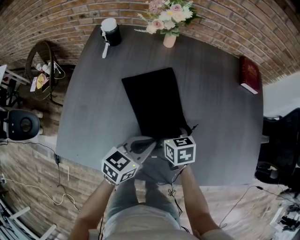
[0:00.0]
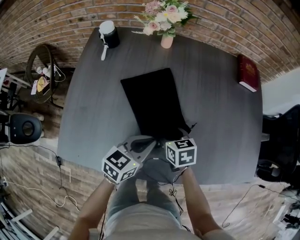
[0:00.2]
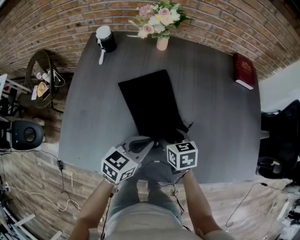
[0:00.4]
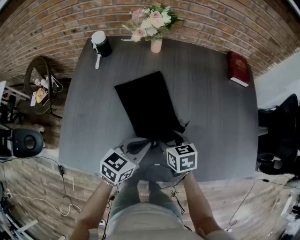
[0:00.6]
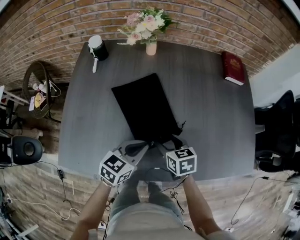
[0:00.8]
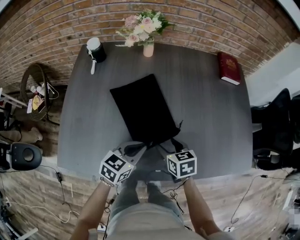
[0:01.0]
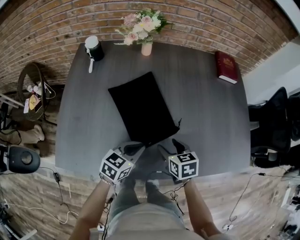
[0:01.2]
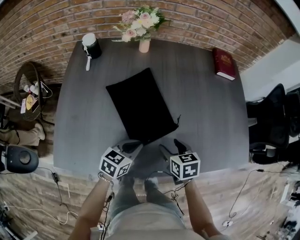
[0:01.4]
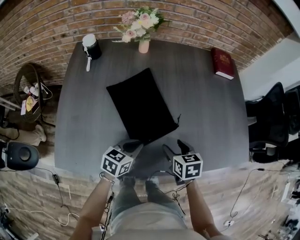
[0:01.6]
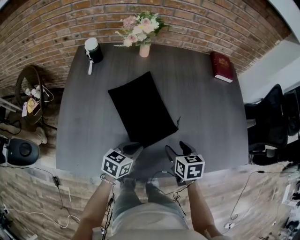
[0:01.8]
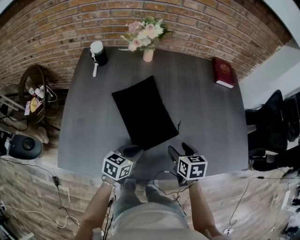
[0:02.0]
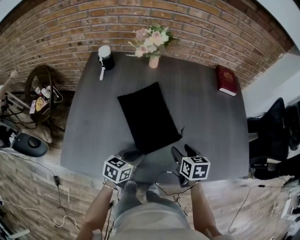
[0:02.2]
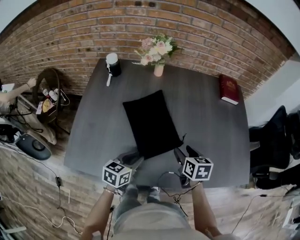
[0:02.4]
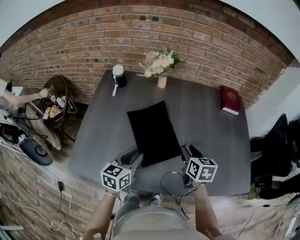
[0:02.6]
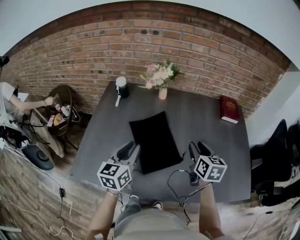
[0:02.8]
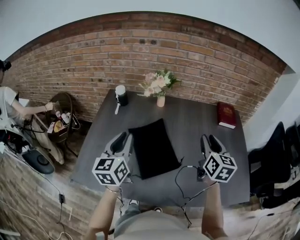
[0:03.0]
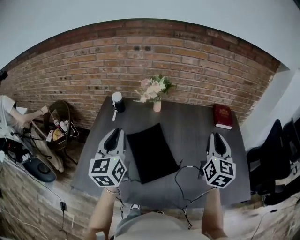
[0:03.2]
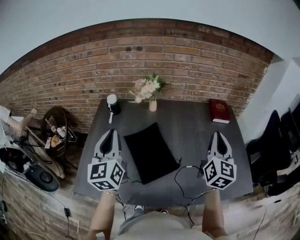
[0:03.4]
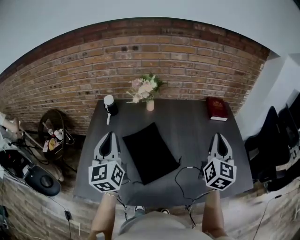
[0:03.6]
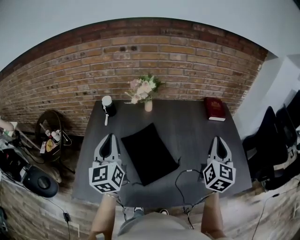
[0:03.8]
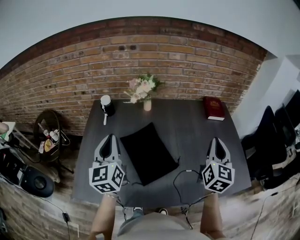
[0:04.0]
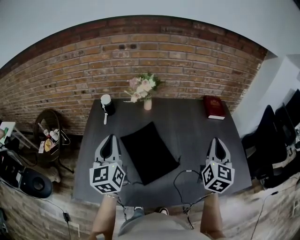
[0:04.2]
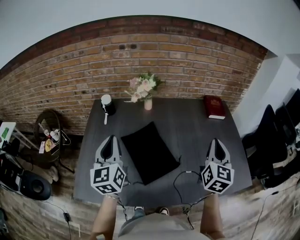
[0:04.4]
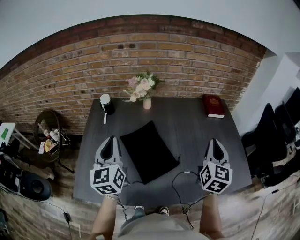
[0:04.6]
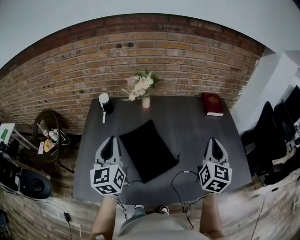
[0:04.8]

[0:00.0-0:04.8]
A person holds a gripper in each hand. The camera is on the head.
0:00.0 to 0:01.6: The left gripper is displaced downward by approximately 5 cm, while the right gripper heads to the right and backward, covering about 15 cm.
0:01.6 to 0:03.2: The right gripper goes some 30 cm upward, angles its fingers upward, by some 50 degrees, and closes up, while the left gripper shifts approximately 35 cm upward and to the left, and angles its fingers upward, by some 30 degrees.
0:03.2 to 0:04.8: The right gripper ends up approximately 5 cm from where it was.

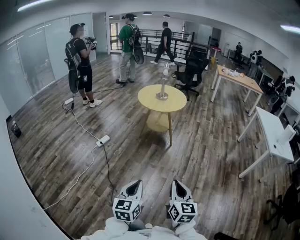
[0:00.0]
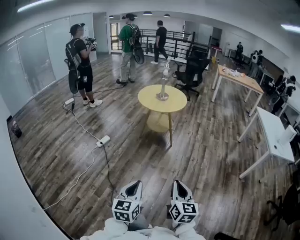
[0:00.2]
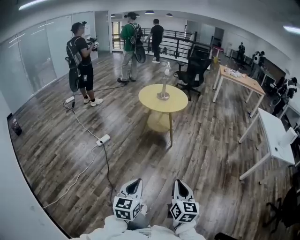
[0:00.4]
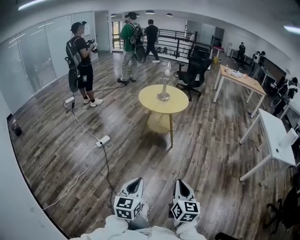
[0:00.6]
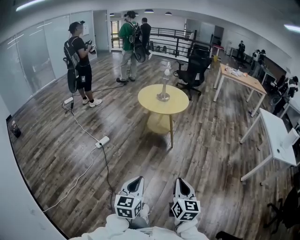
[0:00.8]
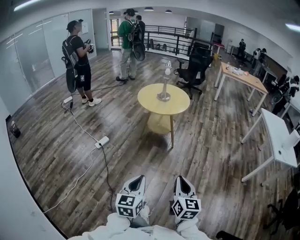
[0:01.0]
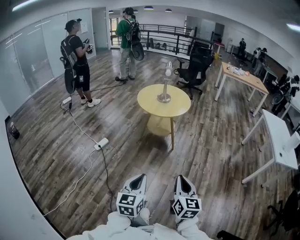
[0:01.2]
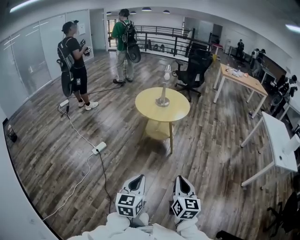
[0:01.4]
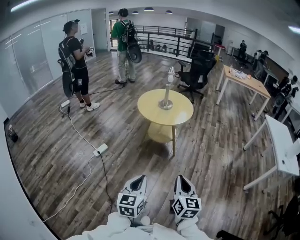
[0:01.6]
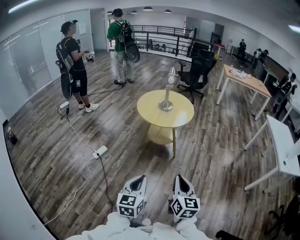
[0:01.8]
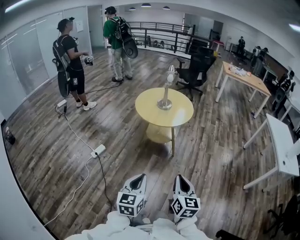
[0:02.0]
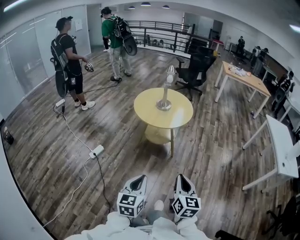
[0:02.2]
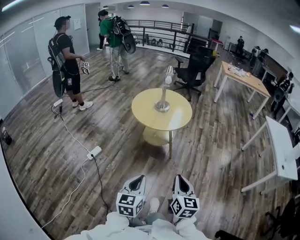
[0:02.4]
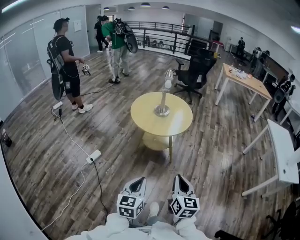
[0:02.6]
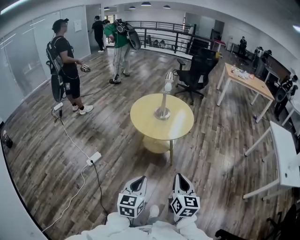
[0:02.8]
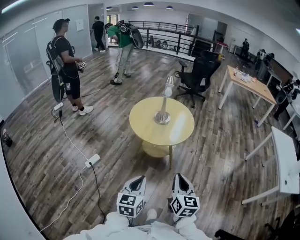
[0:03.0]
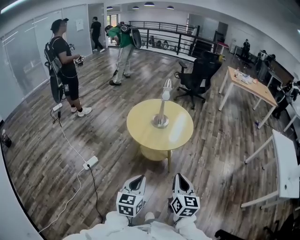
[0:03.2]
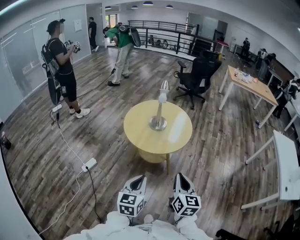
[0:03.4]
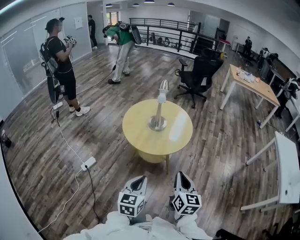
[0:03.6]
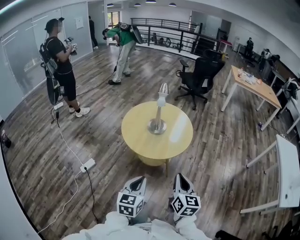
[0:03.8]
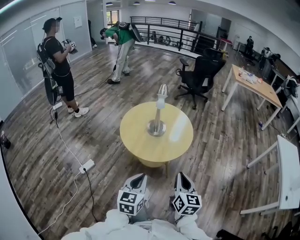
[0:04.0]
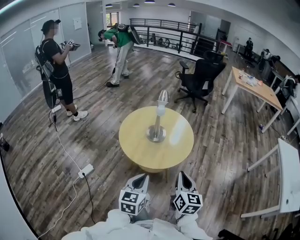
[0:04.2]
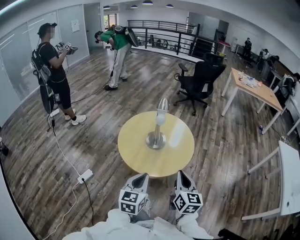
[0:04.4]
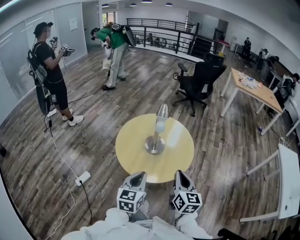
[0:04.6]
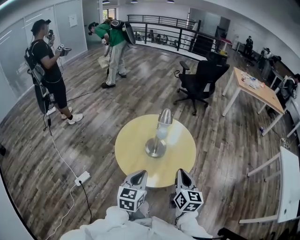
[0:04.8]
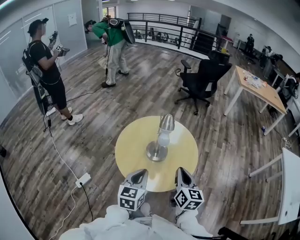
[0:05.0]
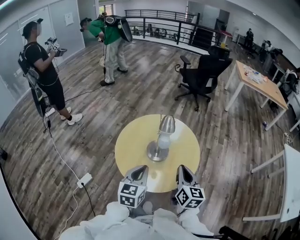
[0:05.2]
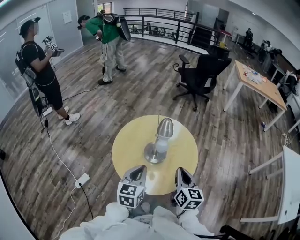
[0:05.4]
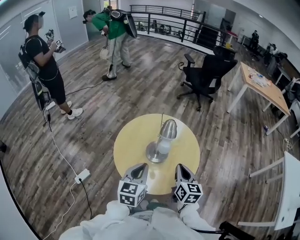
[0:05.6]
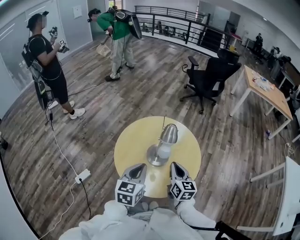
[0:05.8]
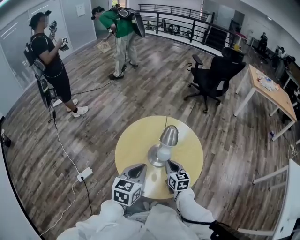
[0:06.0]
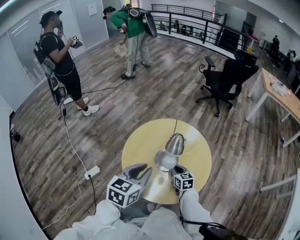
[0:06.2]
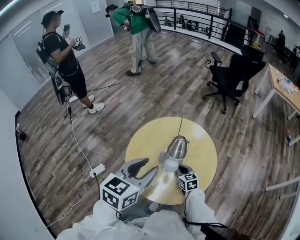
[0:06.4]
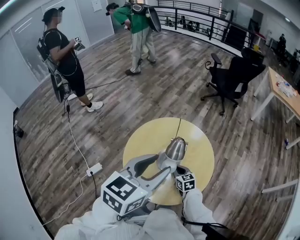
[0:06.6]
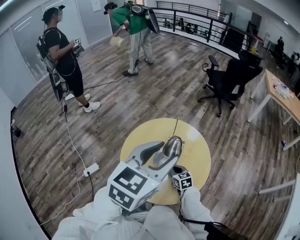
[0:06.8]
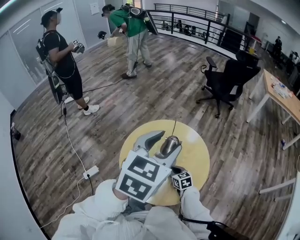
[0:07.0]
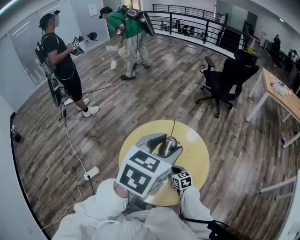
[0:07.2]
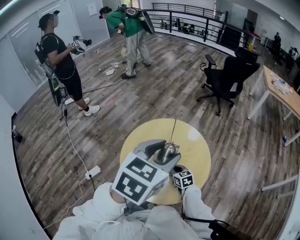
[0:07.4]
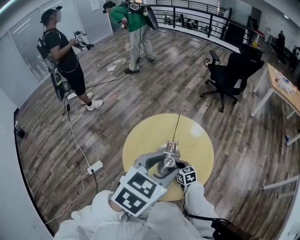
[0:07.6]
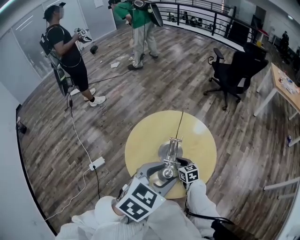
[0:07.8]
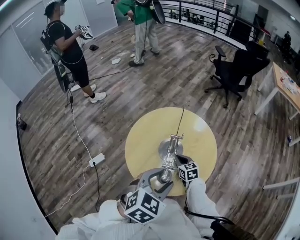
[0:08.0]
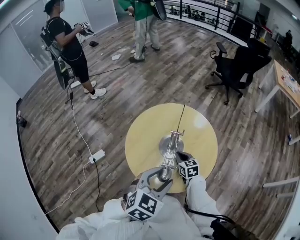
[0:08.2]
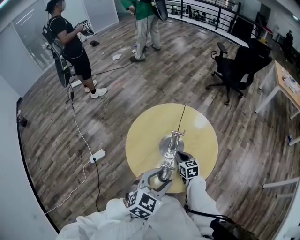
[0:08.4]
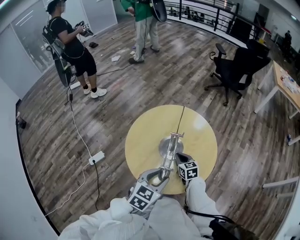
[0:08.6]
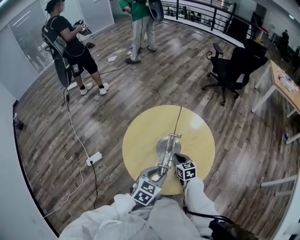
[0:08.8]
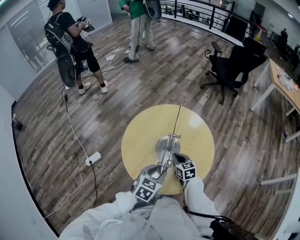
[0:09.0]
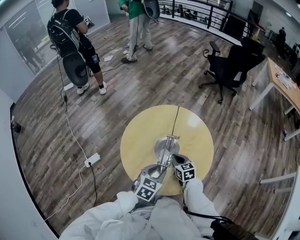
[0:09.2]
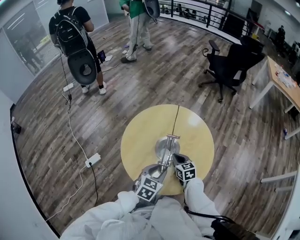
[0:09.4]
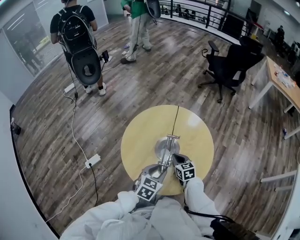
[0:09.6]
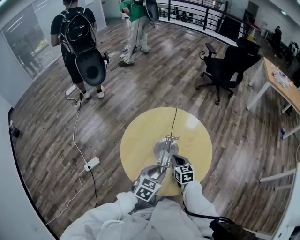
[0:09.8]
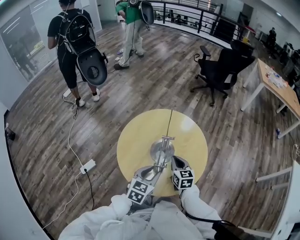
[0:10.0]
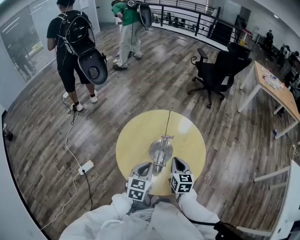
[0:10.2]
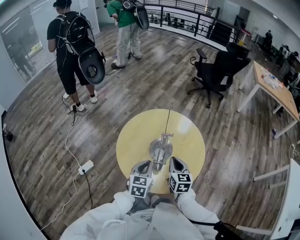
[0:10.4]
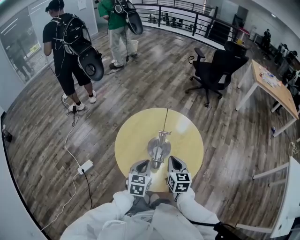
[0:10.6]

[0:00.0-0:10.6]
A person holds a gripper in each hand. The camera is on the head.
0:00.0 to 0:01.6: The grippers both shift forward by about 25 cm.
0:01.6 to 0:03.0: The grippers both shift forward by some 25 cm.
0:03.0 to 0:04.6: The two grippers go about 35 cm forward.
0:04.6 to 0:06.0: The left gripper travels forward by some 15 cm; the right gripper moves forward and downward, approximately 30 cm, and turns by some 30 degrees.
0:06.0 to 0:07.6: The left gripper heads upward and to the right, covering about 15 cm, and opens up. The right gripper goes about 10 cm downward, and swivels roughly 20 degrees.
0:07.6 to 0:09.0: The left gripper shifts approximately 25 cm downward.
0:09.0 to 0:10.6: The left gripper closes up; the right gripper shifts some 15 cm upward and backward, and rotates some 20 degrees.

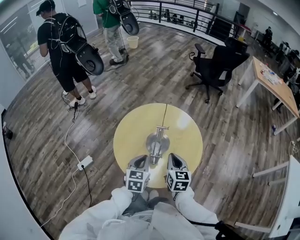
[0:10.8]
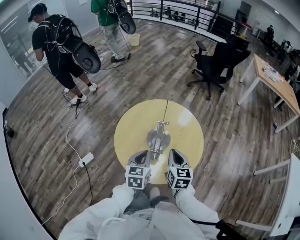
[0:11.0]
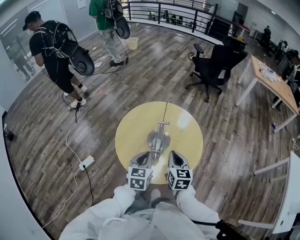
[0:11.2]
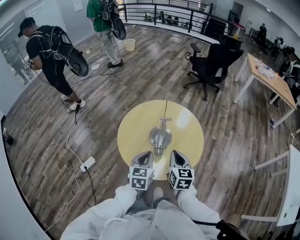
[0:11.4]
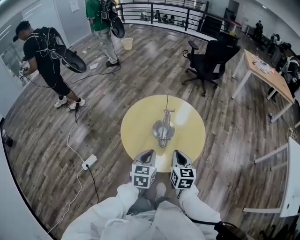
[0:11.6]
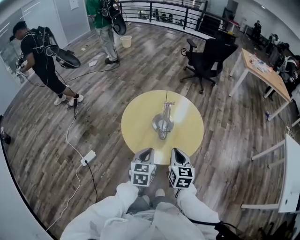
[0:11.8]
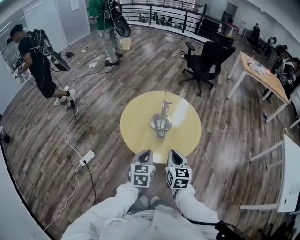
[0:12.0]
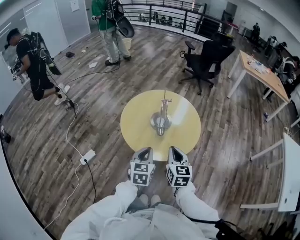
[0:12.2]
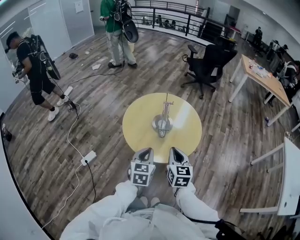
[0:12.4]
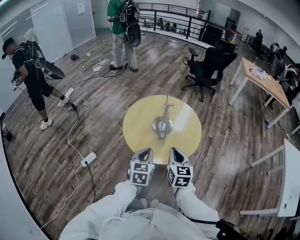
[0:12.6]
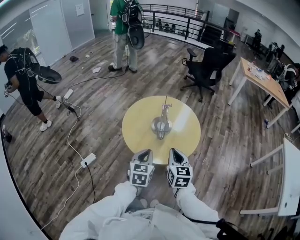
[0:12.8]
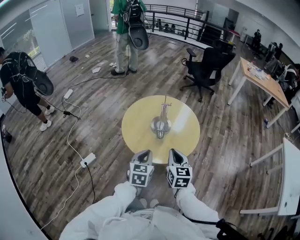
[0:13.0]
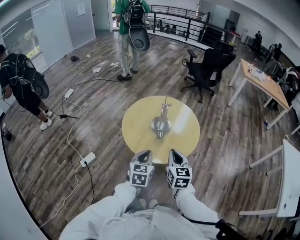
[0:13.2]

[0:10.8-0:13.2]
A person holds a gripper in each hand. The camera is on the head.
0:10.8 to 0:12.0: Both grippers move backward, roughly 15 cm.
0:12.0 to 0:13.2: The grippers stay close to where they were, moving slightly.

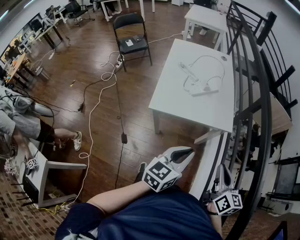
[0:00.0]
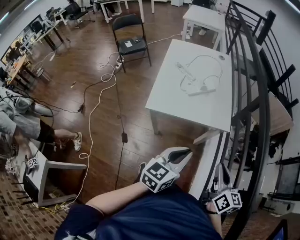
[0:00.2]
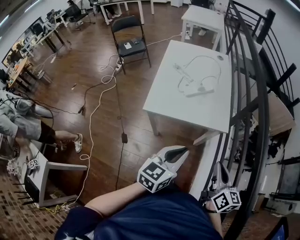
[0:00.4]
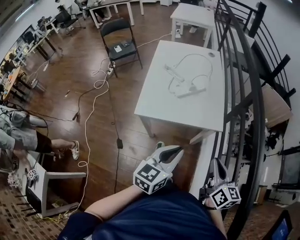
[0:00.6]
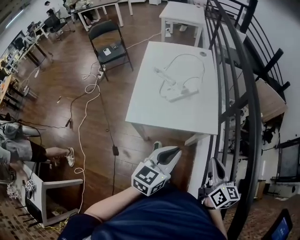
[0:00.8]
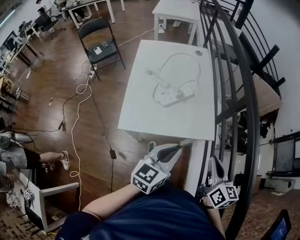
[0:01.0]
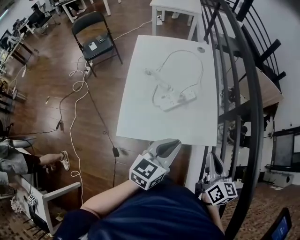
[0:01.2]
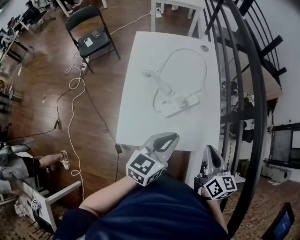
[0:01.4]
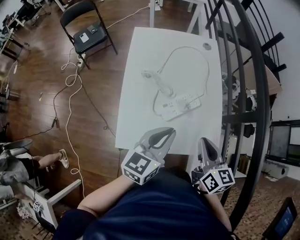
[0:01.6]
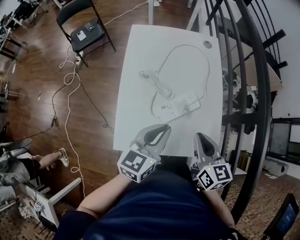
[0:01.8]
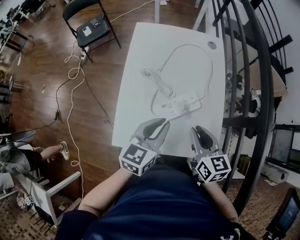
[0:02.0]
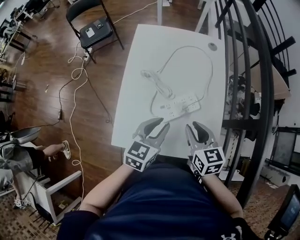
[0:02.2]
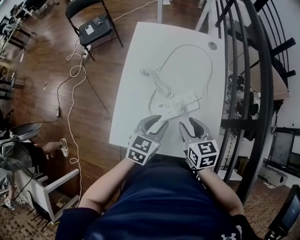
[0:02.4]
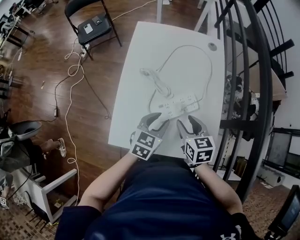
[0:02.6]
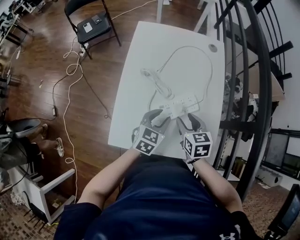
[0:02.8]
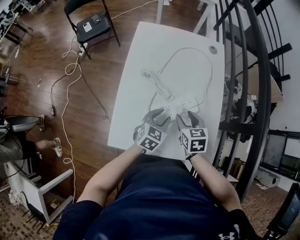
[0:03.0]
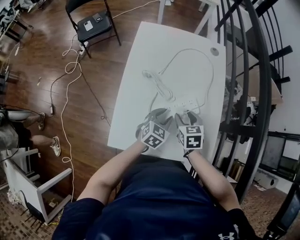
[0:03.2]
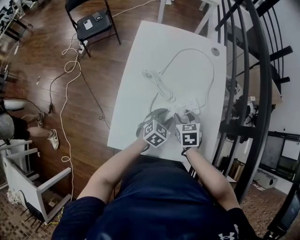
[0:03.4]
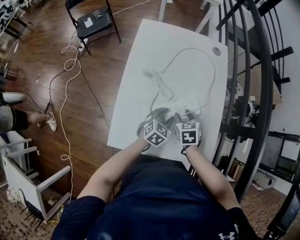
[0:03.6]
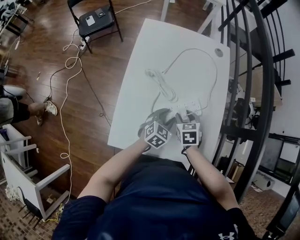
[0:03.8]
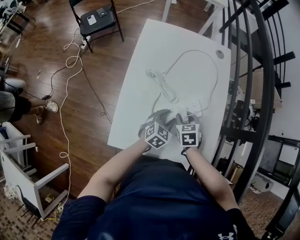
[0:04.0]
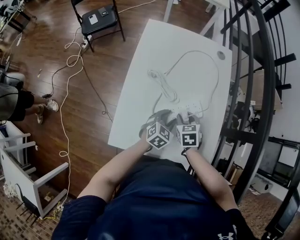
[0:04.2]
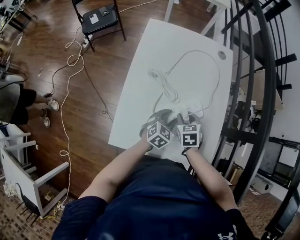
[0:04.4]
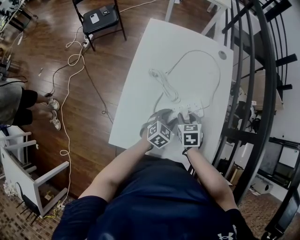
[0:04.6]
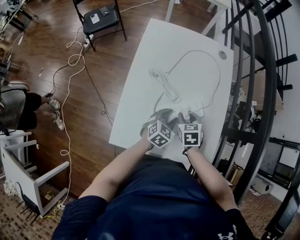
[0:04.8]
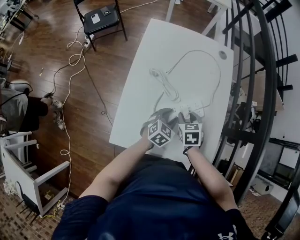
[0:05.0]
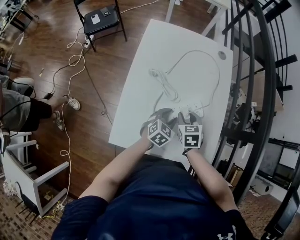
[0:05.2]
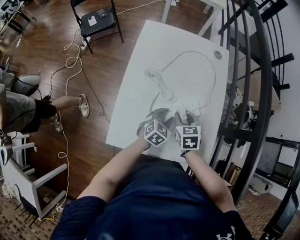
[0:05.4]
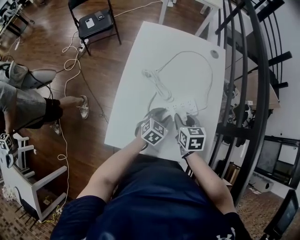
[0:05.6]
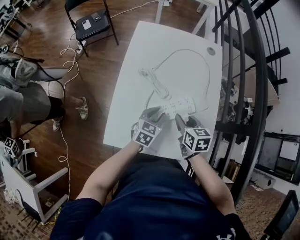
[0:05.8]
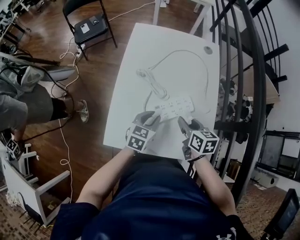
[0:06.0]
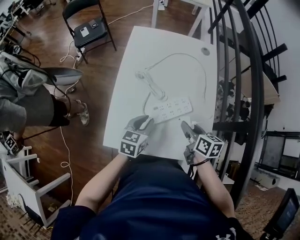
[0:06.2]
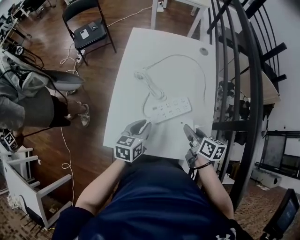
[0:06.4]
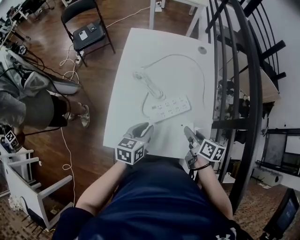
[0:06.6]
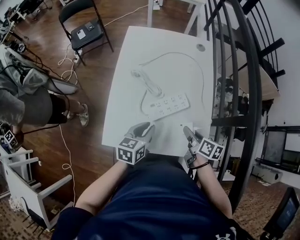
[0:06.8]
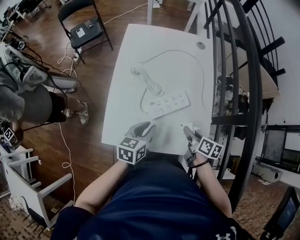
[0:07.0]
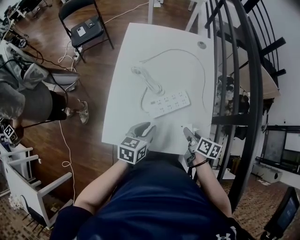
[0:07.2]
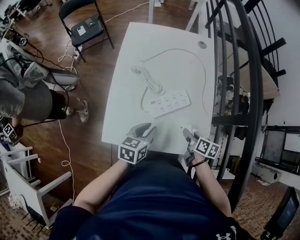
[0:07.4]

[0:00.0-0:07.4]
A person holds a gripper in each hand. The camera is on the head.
0:00.0 to 0:01.4: Both grippers move forward, approximately 25 cm.
0:01.4 to 0:03.0: The left gripper moves downward and forward, roughly 25 cm, turns by approximately 30 degrees, and opens. Meanwhile the right gripper goes roughly 25 cm forward, downward and to the left, rotates about 40 degrees, and opens up.
0:03.0 to 0:04.4: The left gripper moves roughly 5 cm; the right gripper shifts approximately 5 cm downward.
0:04.4 to 0:06.0: The grippers both shift upward by about 5 cm. The right gripper swivels roughly 30 degrees.
0:06.0 to 0:07.4: The left gripper is displaced backward by about 5 cm. The right gripper heads downward, backward and to the right, covering about 15 cm, and swivels about 20 degrees.
